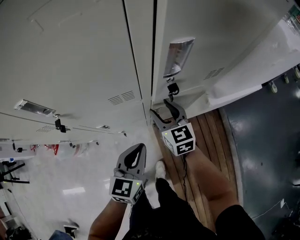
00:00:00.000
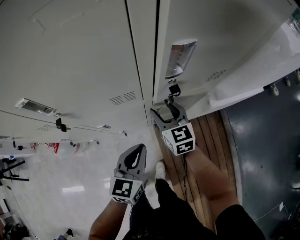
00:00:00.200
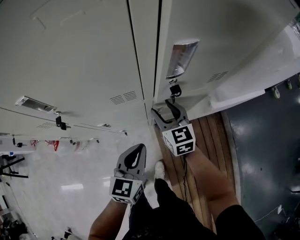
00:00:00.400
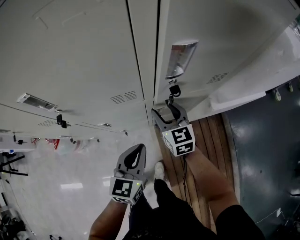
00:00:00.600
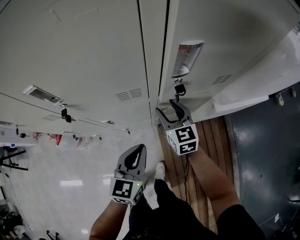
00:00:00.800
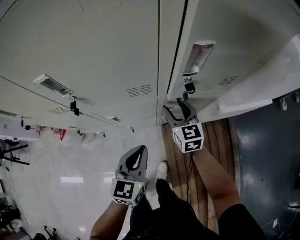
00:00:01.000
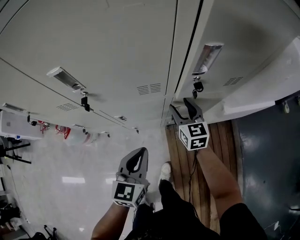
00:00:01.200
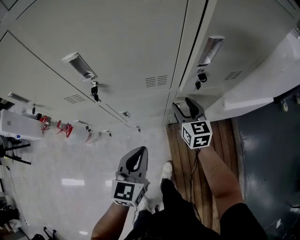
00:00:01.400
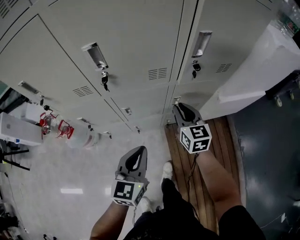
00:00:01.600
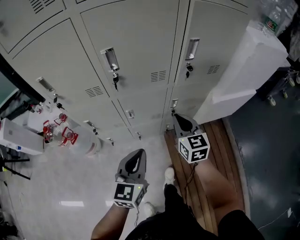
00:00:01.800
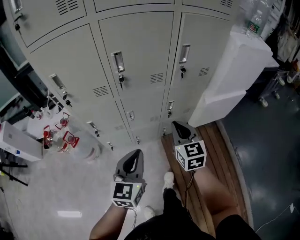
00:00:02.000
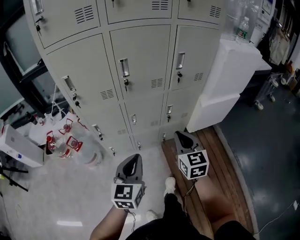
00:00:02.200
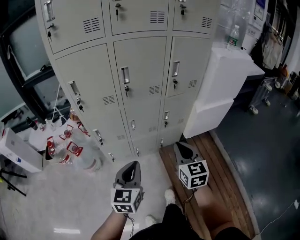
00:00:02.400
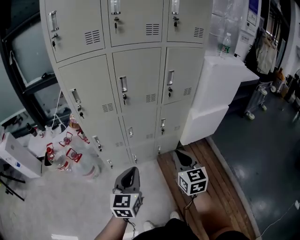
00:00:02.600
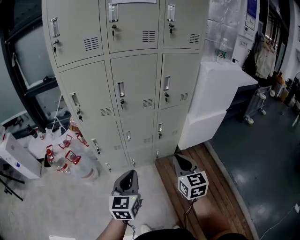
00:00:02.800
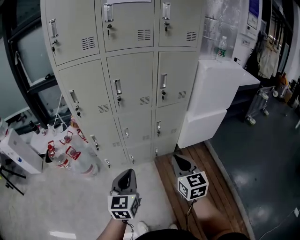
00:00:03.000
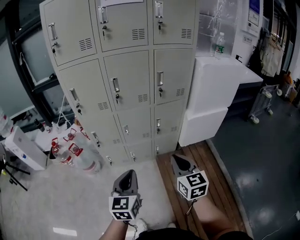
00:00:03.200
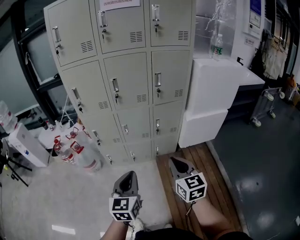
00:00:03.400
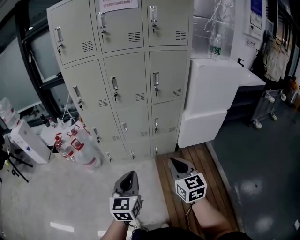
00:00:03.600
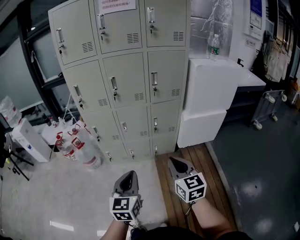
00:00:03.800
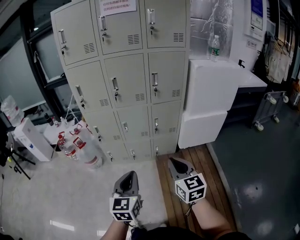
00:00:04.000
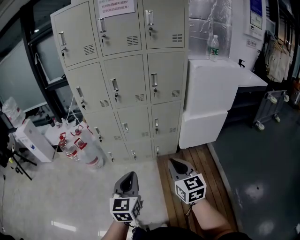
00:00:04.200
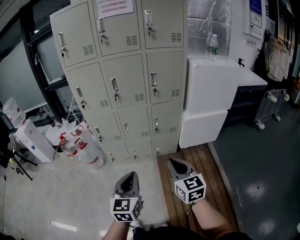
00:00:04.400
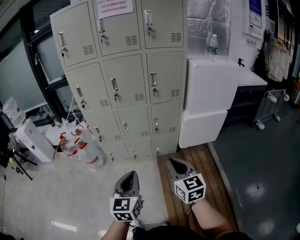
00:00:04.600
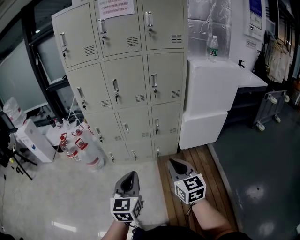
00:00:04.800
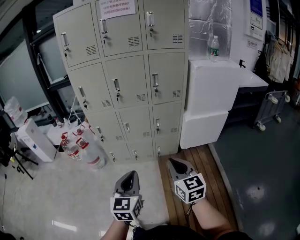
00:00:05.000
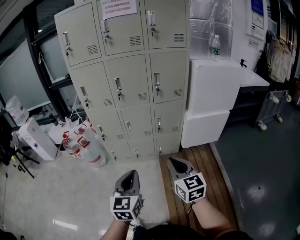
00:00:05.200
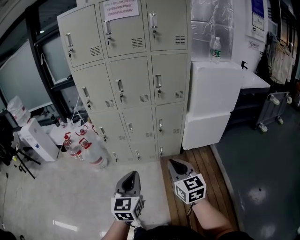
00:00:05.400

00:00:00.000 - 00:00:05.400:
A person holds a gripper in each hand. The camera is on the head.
00:00:00.000 - 00:00:01.400: The left gripper goes about 10 cm to the left and backward.
00:00:01.400 - 00:00:02.800: The two grippers go roughly 50 cm backward, to the right and upward. The right gripper closes.
00:00:02.800 - 00:00:04.000: The right gripper moves backward and to the right, approximately 20 cm, while the left gripper goes approximately 20 cm to the right and backward.
00:00:04.000 - 00:00:05.400: There are only small adjustments of the grippers.

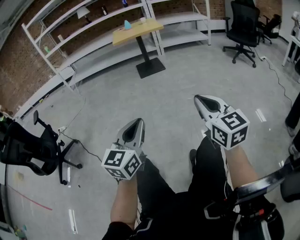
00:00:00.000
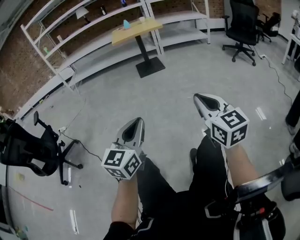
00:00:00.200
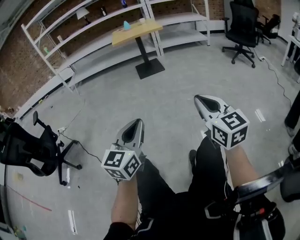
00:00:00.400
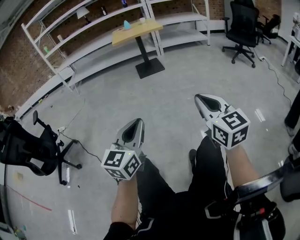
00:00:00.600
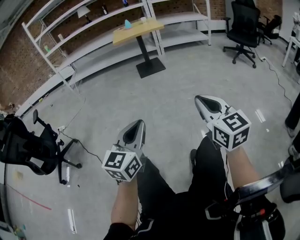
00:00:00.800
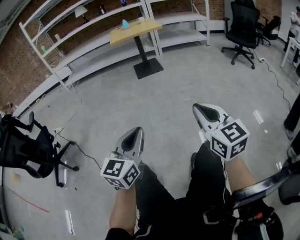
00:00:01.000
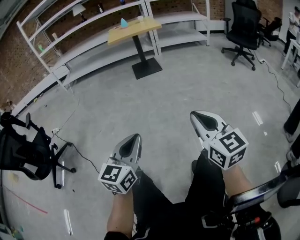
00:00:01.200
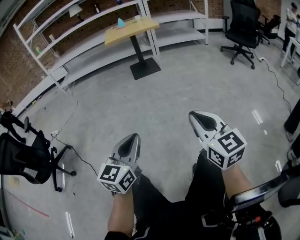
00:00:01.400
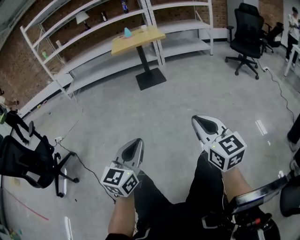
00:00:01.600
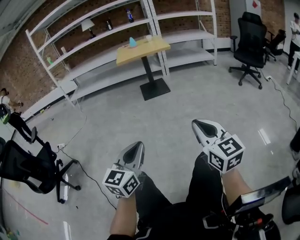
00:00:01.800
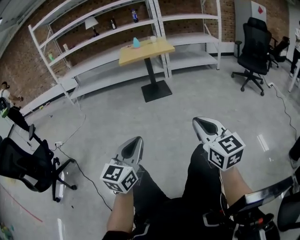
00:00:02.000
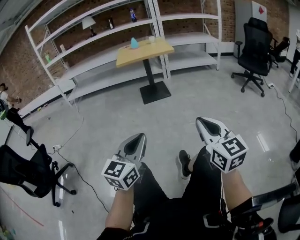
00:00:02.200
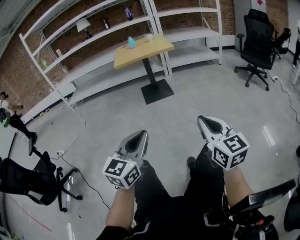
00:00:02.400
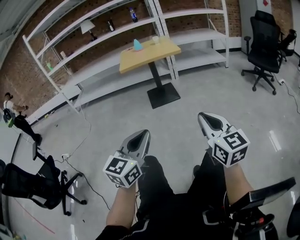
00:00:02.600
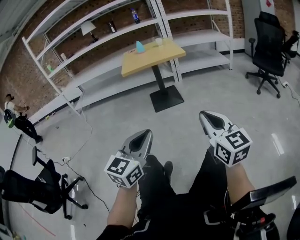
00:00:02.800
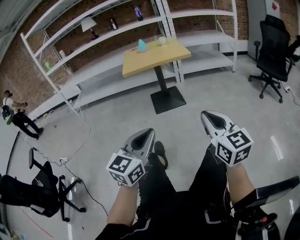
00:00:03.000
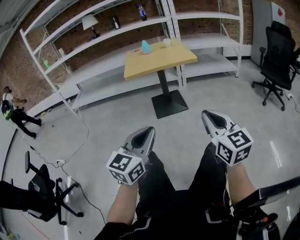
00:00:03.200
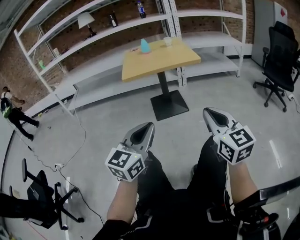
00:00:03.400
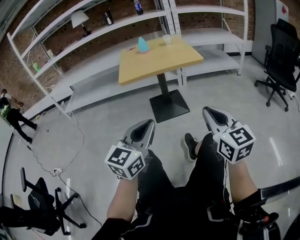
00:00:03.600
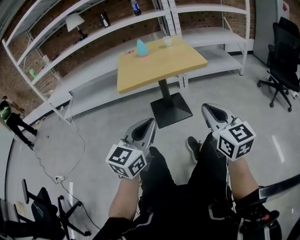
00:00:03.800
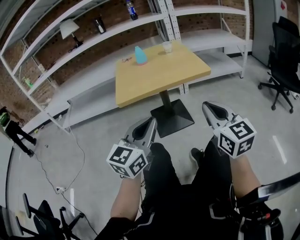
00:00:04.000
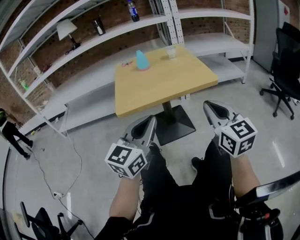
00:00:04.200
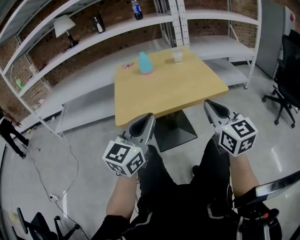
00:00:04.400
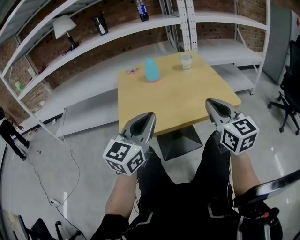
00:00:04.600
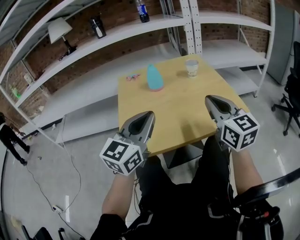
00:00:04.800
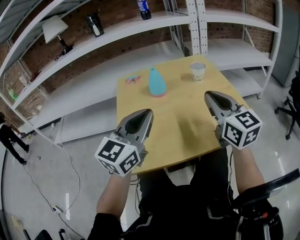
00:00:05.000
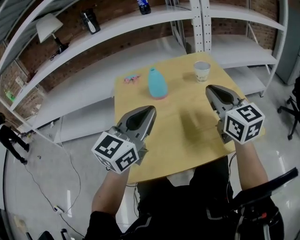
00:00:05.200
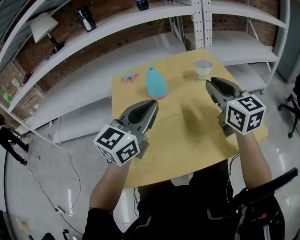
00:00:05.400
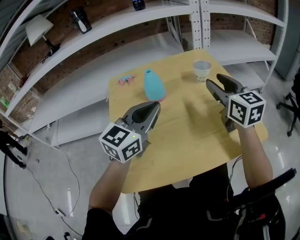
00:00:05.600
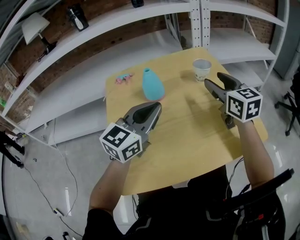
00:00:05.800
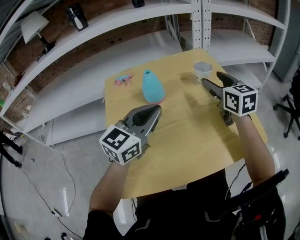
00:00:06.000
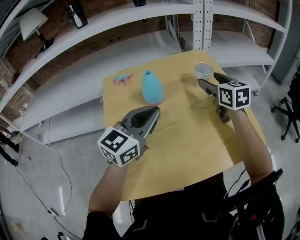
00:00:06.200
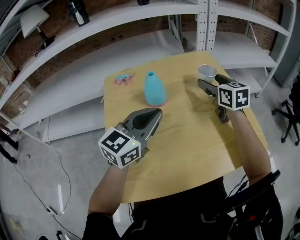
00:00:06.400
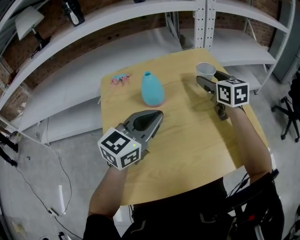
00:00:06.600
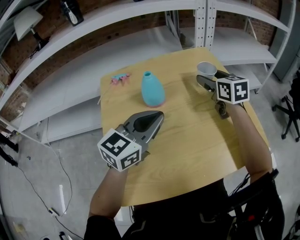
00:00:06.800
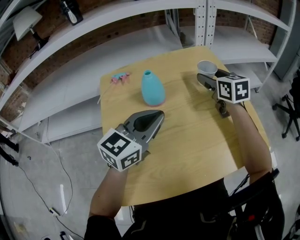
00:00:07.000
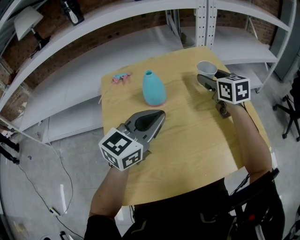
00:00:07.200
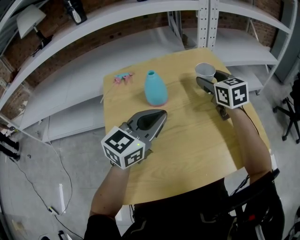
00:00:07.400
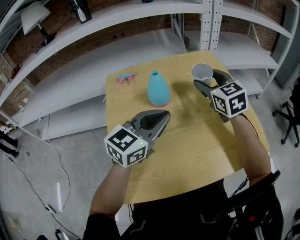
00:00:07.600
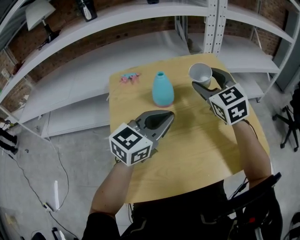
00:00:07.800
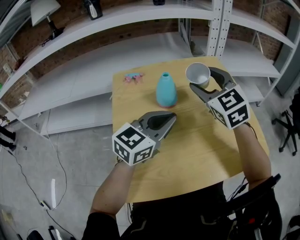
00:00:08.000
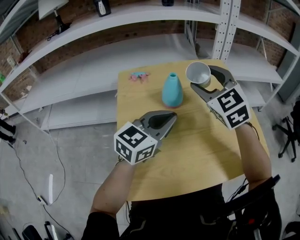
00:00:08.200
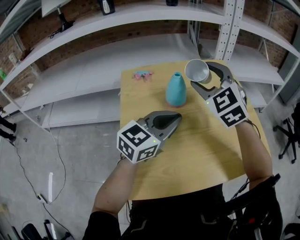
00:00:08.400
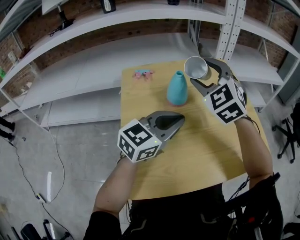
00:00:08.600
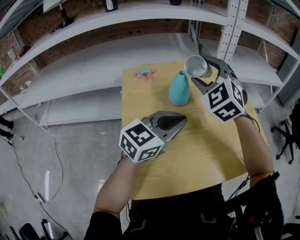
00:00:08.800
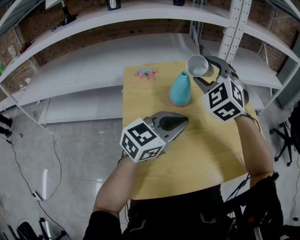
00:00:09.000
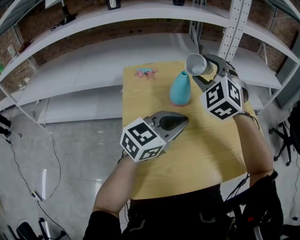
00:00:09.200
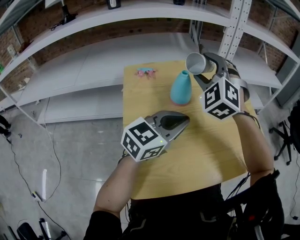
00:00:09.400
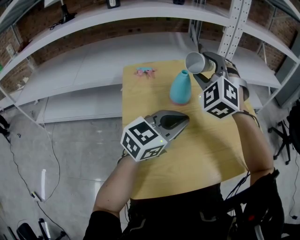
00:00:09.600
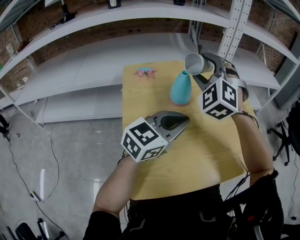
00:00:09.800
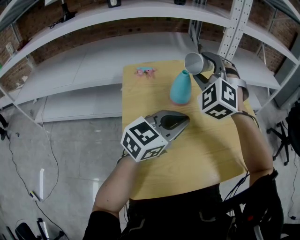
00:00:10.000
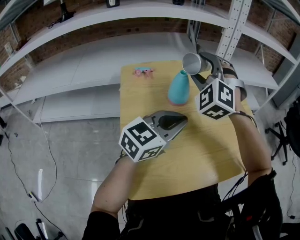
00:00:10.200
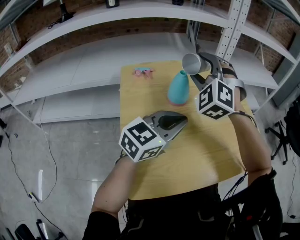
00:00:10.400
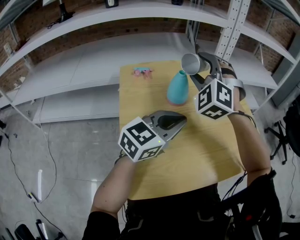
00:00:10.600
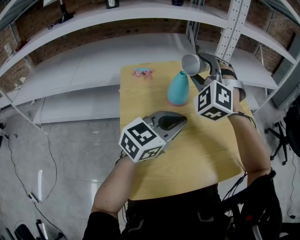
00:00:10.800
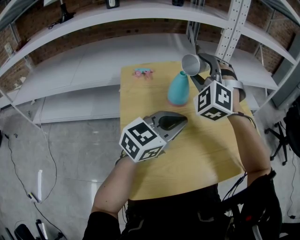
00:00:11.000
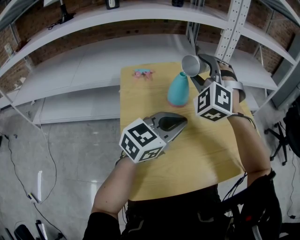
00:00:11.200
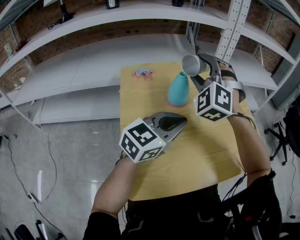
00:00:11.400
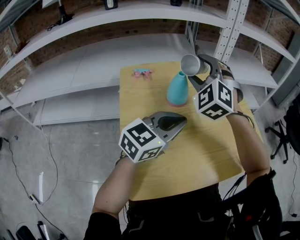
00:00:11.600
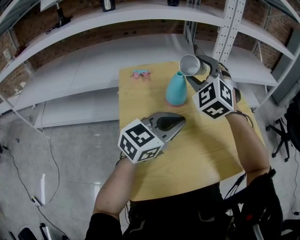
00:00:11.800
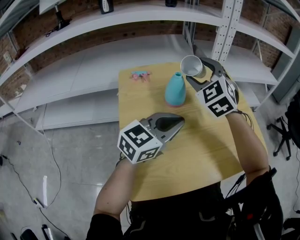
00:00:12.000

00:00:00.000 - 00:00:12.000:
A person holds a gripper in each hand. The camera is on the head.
00:00:00.000 - 00:00:01.600: Both grippers move forward, approximately 10 cm.
00:00:01.600 - 00:00:03.000: The grippers both shift forward by some 40 cm.
00:00:03.000 - 00:00:04.400: The two grippers travel together, forward, some 60 cm.
00:00:04.400 - 00:00:06.000: Both grippers move forward, approximately 35 cm. The right gripper opens up.
00:00:06.000 - 00:00:07.600: The right gripper moves to the left, roughly 5 cm.
00:00:07.600 - 00:00:09.000: The right gripper moves to the left and upward, about 15 cm, and rolls counterclockwise, seen from behind, by about 40 degrees.
00:00:09.000 - 00:00:10.400: The grippers move only a little.
00:00:10.400 - 00:00:12.000: The right gripper rotates about 30 degrees.

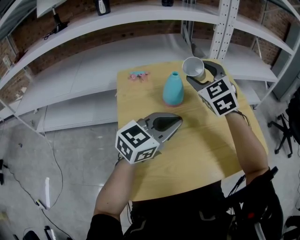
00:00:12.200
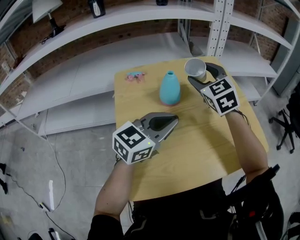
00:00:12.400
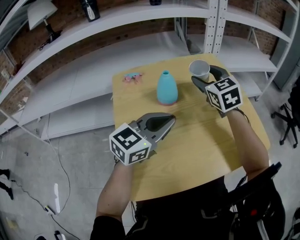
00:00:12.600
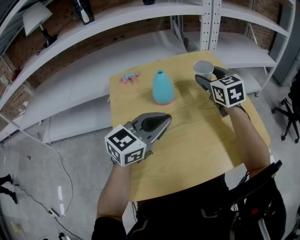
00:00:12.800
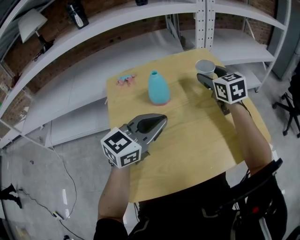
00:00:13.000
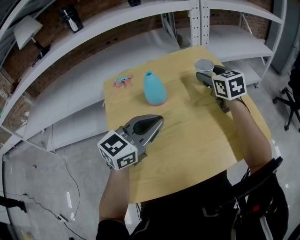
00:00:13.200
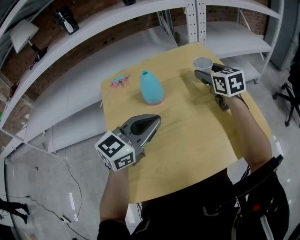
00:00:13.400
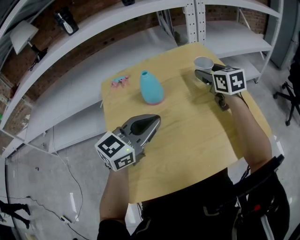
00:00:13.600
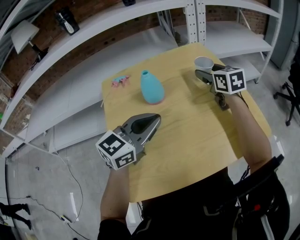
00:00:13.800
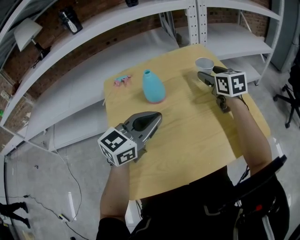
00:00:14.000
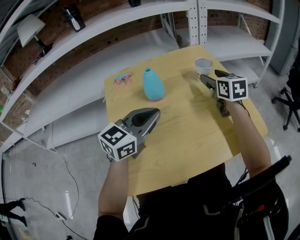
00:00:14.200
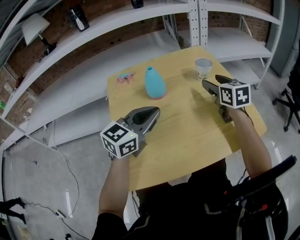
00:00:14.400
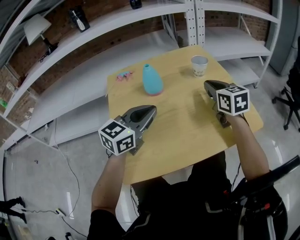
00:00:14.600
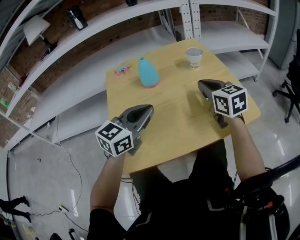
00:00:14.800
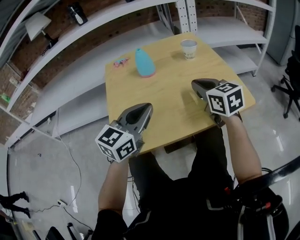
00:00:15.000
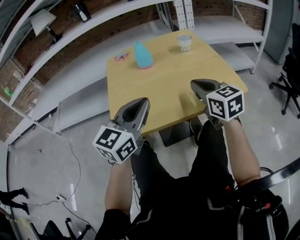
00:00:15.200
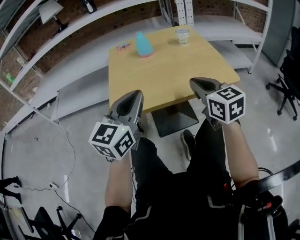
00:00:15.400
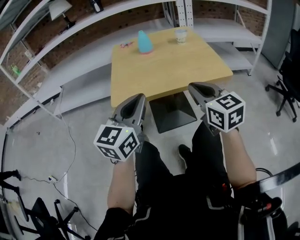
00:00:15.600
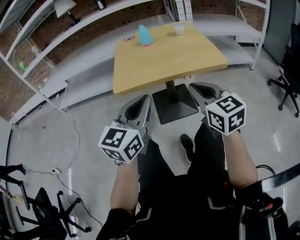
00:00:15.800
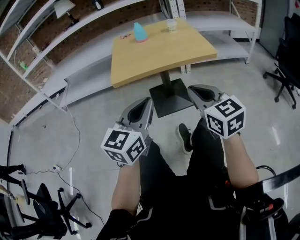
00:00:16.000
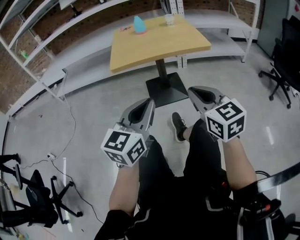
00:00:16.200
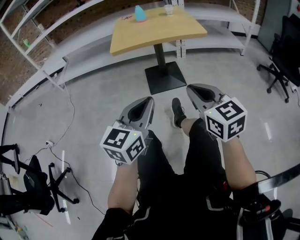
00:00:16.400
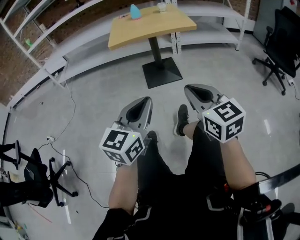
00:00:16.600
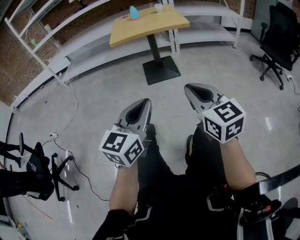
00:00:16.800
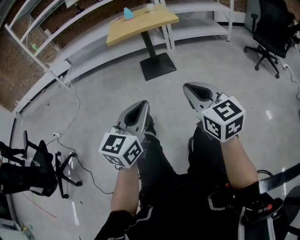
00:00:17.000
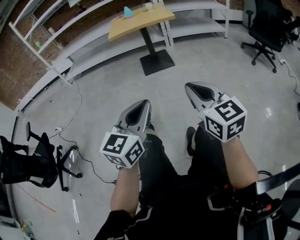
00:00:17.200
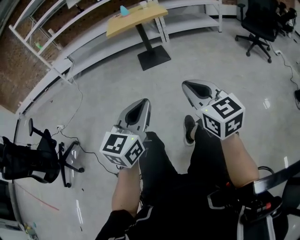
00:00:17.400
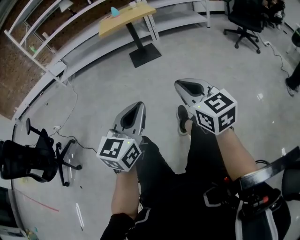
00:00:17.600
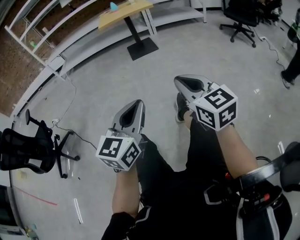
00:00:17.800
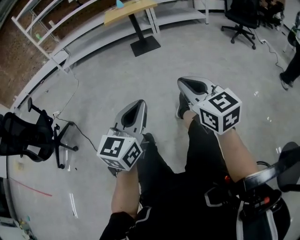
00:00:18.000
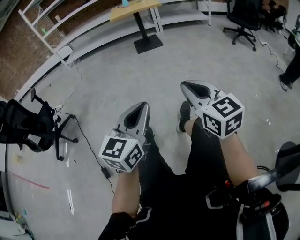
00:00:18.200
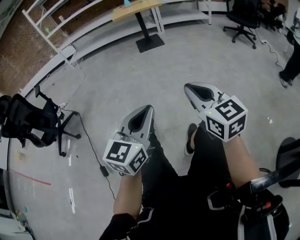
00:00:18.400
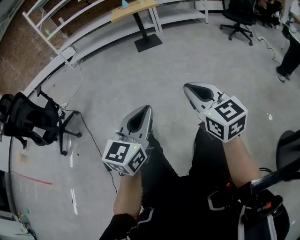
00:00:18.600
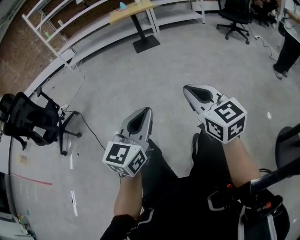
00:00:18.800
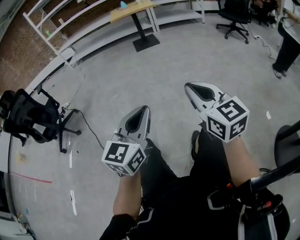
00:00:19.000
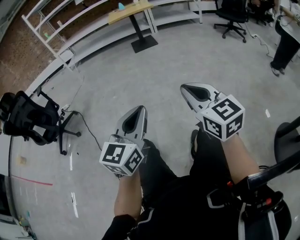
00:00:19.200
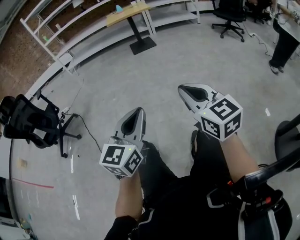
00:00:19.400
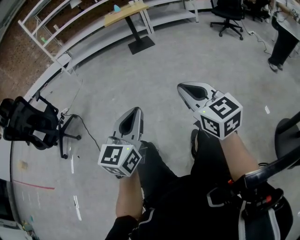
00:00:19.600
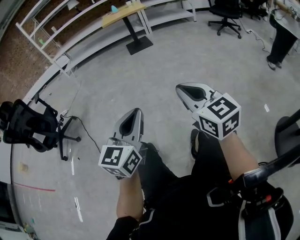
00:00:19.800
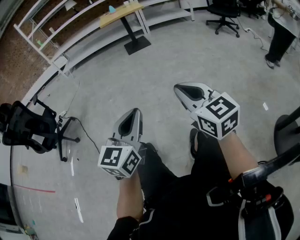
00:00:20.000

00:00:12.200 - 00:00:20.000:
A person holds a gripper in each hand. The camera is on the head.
00:00:12.200 - 00:00:13.800: The right gripper shifts approximately 20 cm to the right, downward and forward, and rolls clockwise, seen from behind, by some 40 degrees.
00:00:13.800 - 00:00:15.400: The left gripper is displaced backward by approximately 25 cm, and turns by approximately 30 degrees. Meanwhile the right gripper moves backward, about 35 cm, and closes its fingers.
00:00:15.400 - 00:00:16.800: Both grippers are carried backward, approximately 60 cm.
00:00:16.800 - 00:00:18.400: The pair of grippers is taken backward, about 70 cm.
00:00:18.400 - 00:00:20.000: The grippers both shift backward by some 10 cm.
